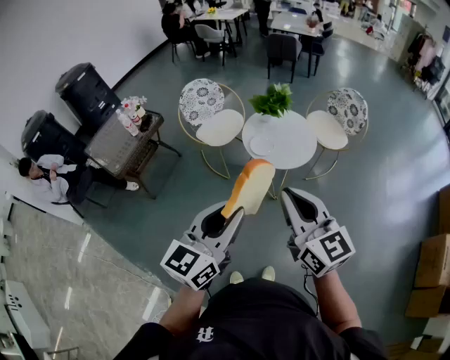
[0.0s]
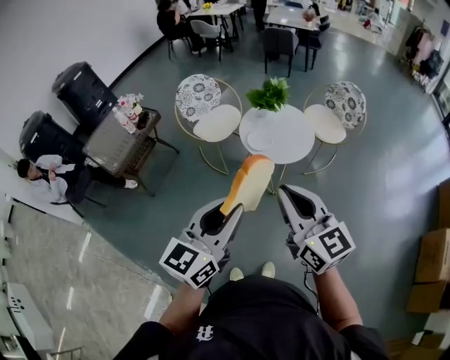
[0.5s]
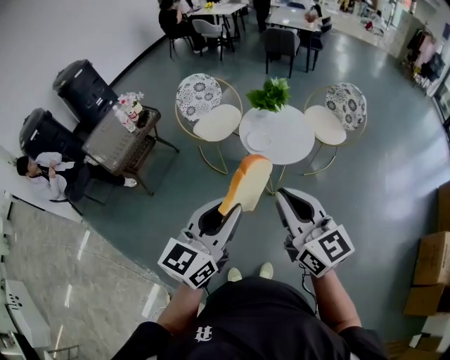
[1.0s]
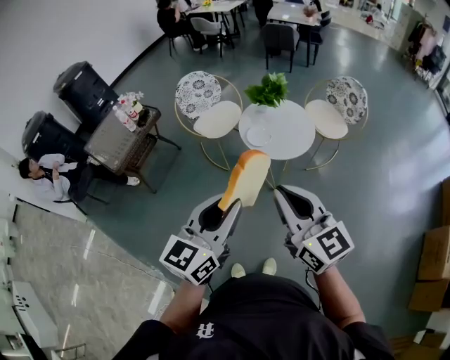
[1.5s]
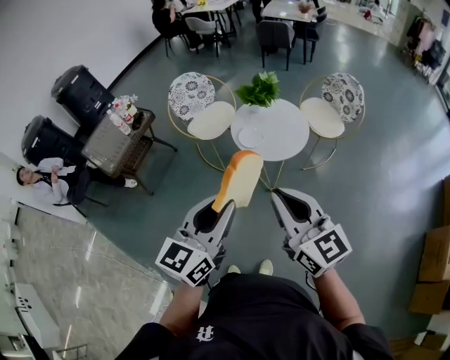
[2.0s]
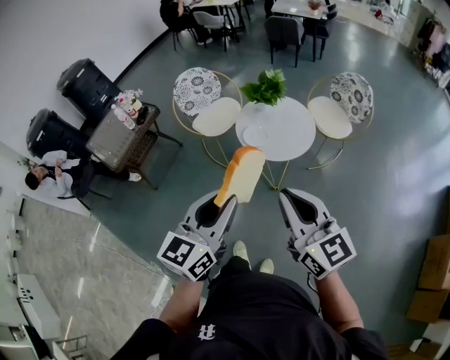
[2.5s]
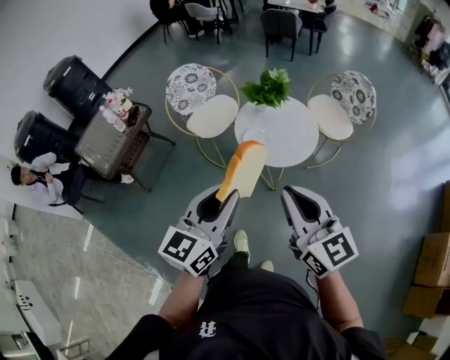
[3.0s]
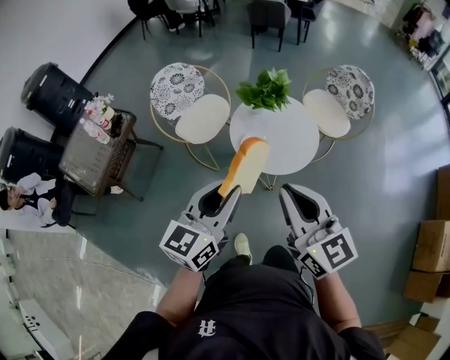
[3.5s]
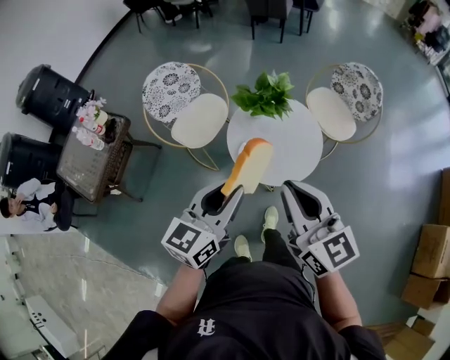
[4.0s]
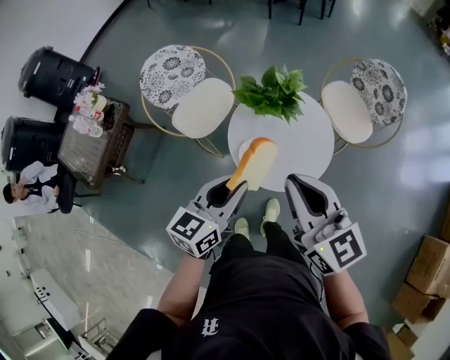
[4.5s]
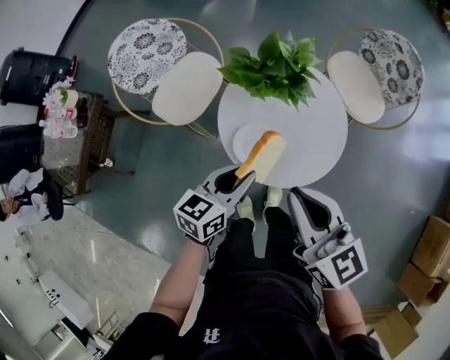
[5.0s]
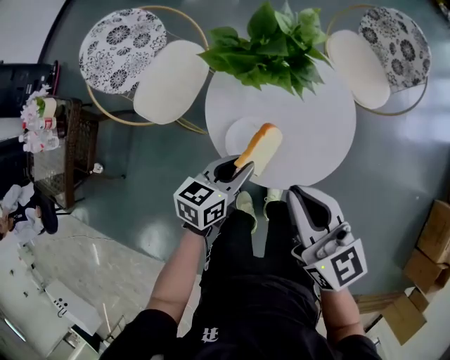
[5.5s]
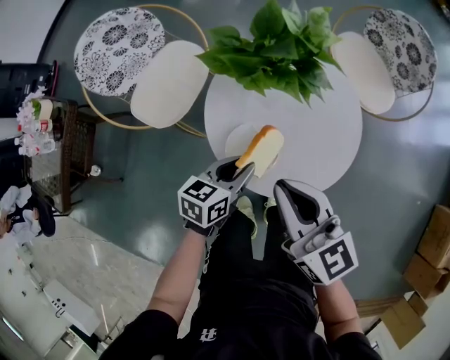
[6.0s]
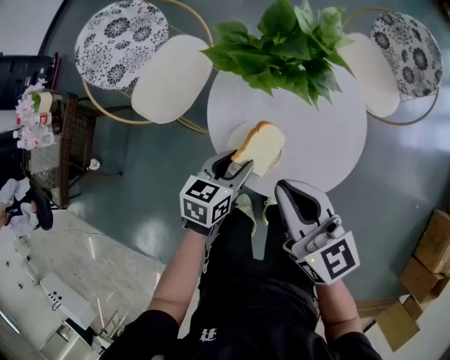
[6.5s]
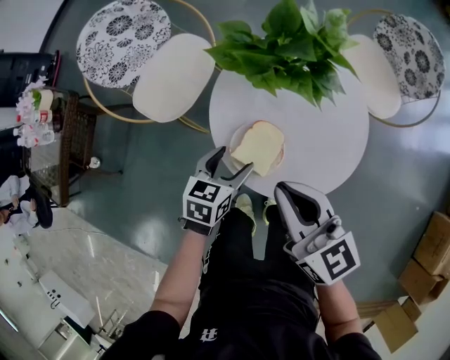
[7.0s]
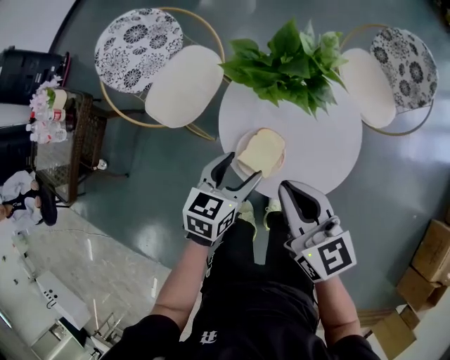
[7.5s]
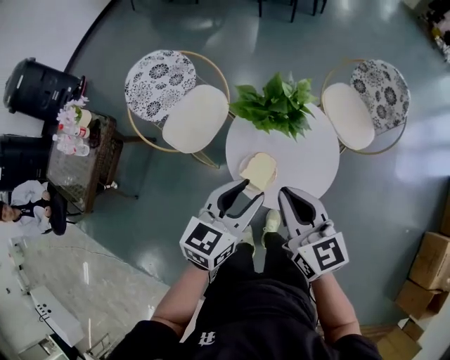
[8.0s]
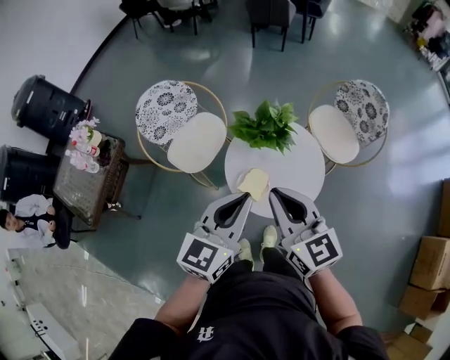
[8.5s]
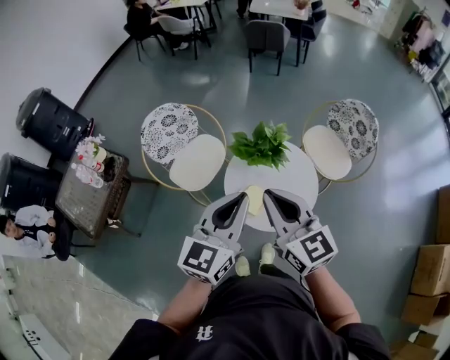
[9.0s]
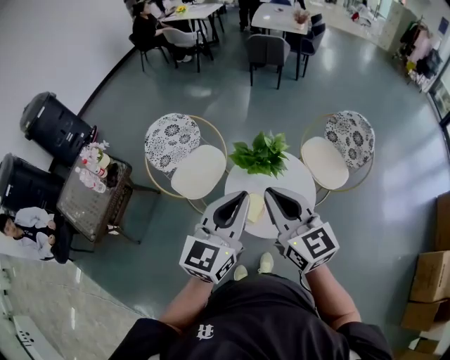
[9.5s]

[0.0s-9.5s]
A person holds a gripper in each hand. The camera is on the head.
0.0s to 2.0s: Both grippers move to the right, roughly 5 cm.
2.0s to 4.0s: Both grippers move forward, approximately 30 cm.
4.0s to 5.5s: Both grippers travel together downward and forward, about 35 cm. The left gripper swivels some 30 degrees.
5.5s to 7.5s: The right gripper changes place by approximately 5 cm. Meanwhile the left gripper reaches some 10 cm downward, then returns, and opens.
7.5s to 9.5s: The grippers both shift upward by about 35 cm. The right gripper turns by about 20 degrees, while the left gripper points its fingers approximately 30 degrees further upward, and closes.

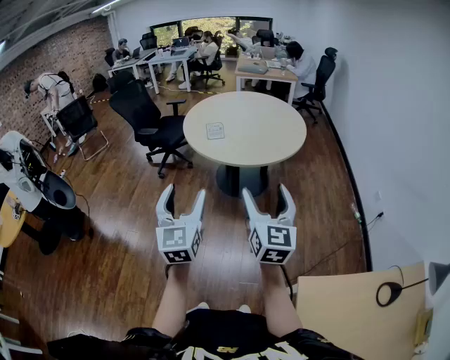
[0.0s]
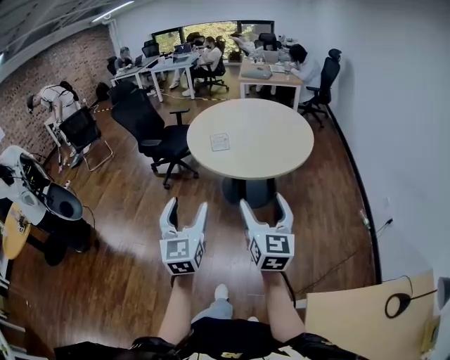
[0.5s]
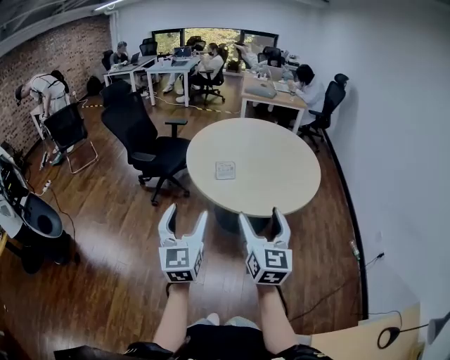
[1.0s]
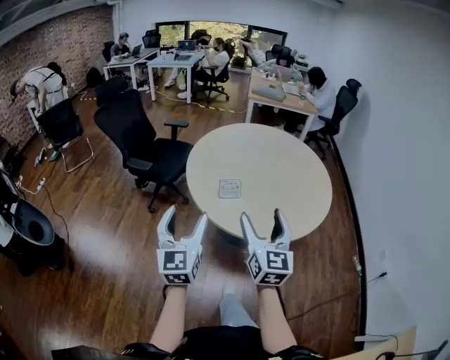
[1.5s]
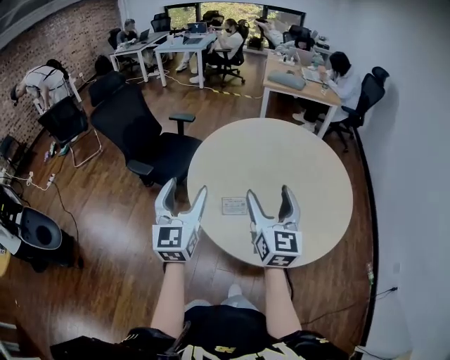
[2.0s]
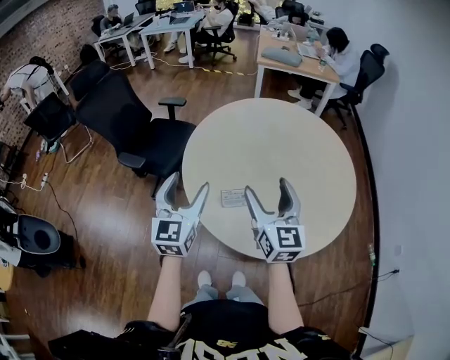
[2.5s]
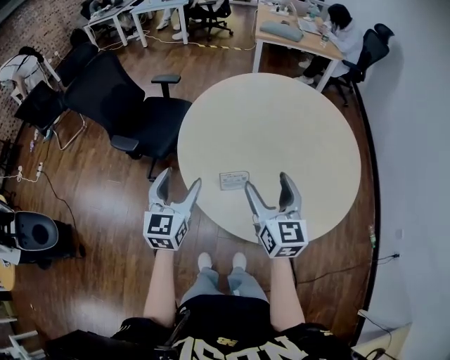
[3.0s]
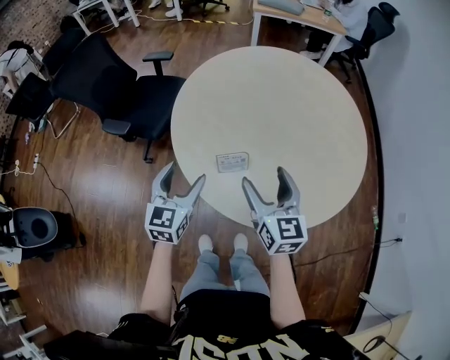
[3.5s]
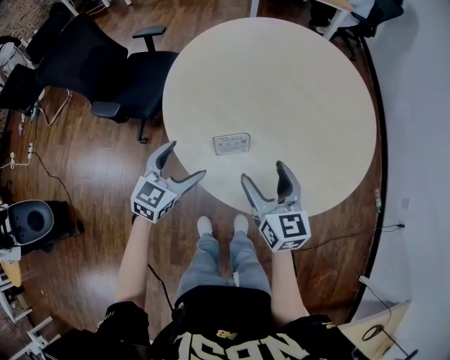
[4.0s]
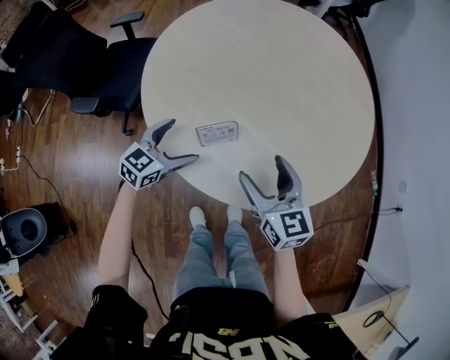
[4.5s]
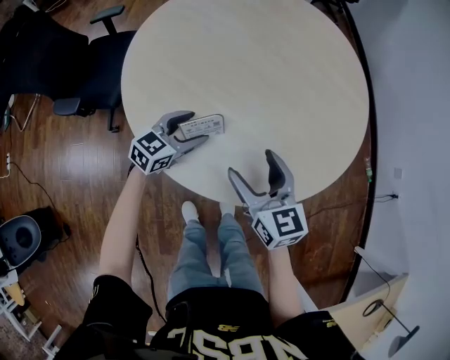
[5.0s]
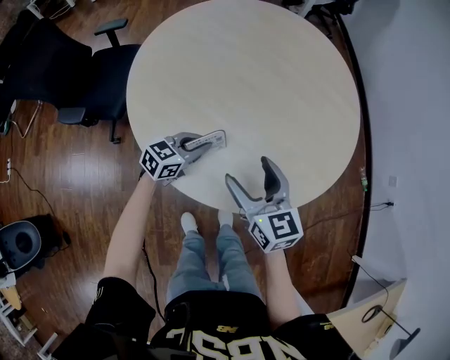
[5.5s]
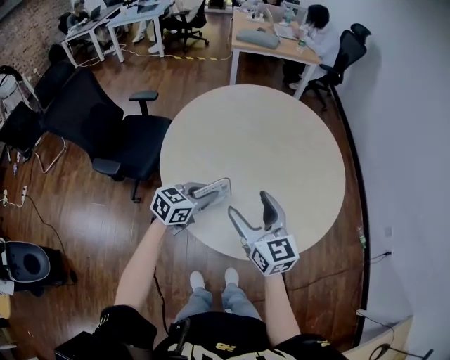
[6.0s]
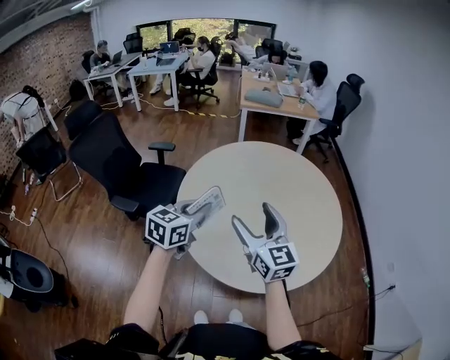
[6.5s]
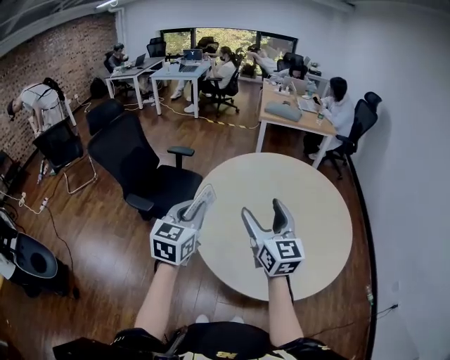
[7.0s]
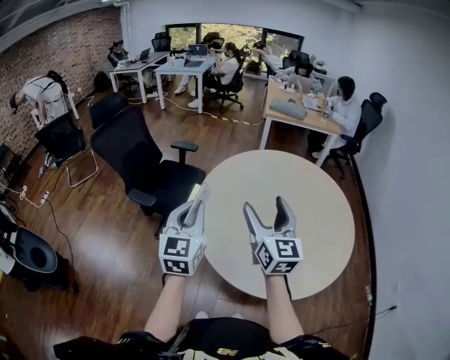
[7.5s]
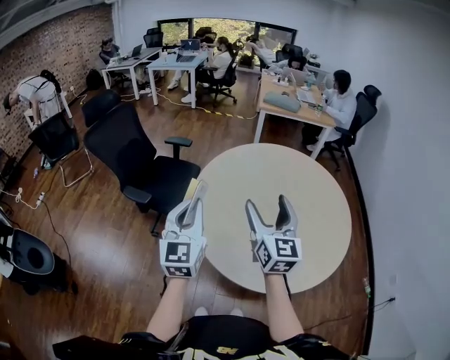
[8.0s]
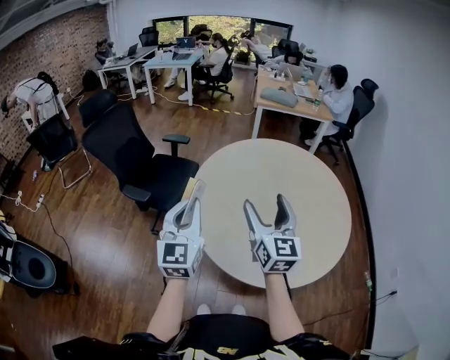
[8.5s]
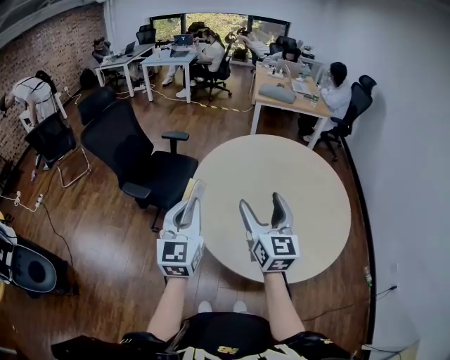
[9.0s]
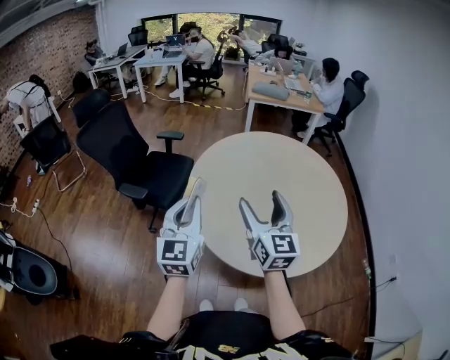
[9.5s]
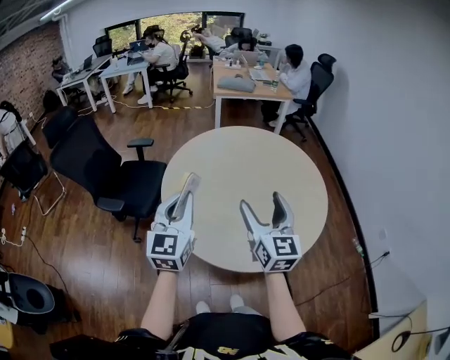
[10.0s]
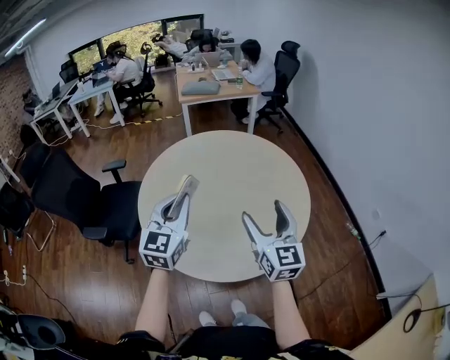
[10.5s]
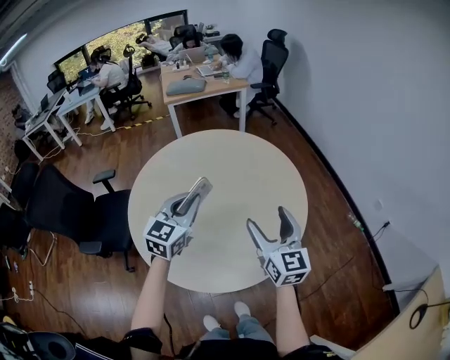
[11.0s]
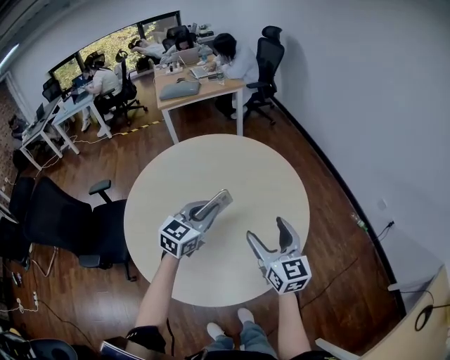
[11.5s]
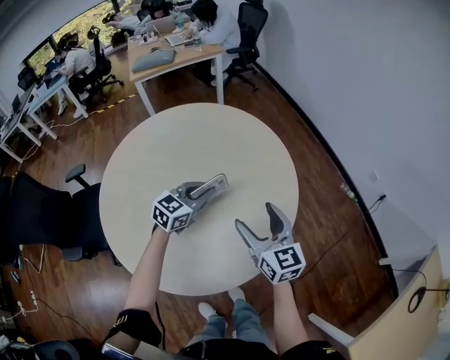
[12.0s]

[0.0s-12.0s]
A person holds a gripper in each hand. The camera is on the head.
0.0s to 2.0s: The pair of grippers is taken forward, roughly 60 cm.
2.0s to 4.0s: The two grippers go about 25 cm downward. The right gripper swivels some 20 degrees. Meanwhile the left gripper changes its angle by approximately 40 degrees.
4.0s to 6.0s: The left gripper goes about 10 cm forward and to the right, goes downward and returns, about 10 cm each way, changes its angle by some 30 degrees, and closes up; the right gripper moves upward, some 10 cm.
6.0s to 8.0s: The right gripper shifts approximately 15 cm upward. Meanwhile the left gripper goes about 25 cm upward, and changes its angle by about 60 degrees.
8.0s to 10.0s: The right gripper goes approximately 10 cm to the right and backward. The left gripper shifts some 5 cm to the right.
10.0s to 12.0s: The left gripper changes place by some 50 cm, and swivels some 60 degrees. Meanwhile the right gripper ends up about 30 cm from where it was.

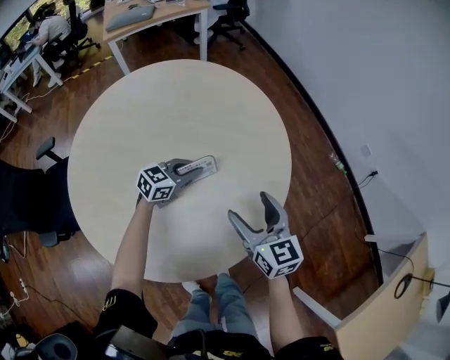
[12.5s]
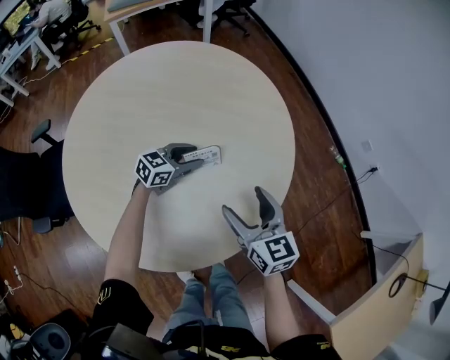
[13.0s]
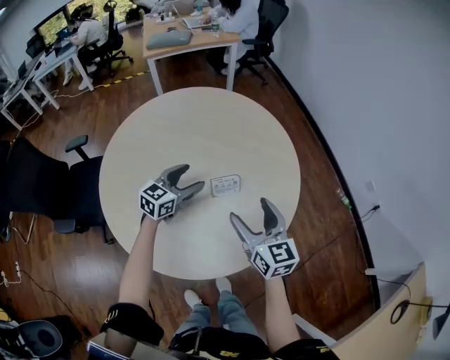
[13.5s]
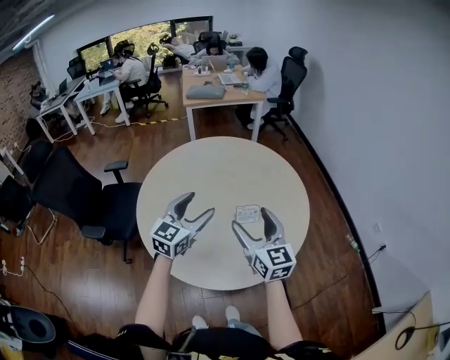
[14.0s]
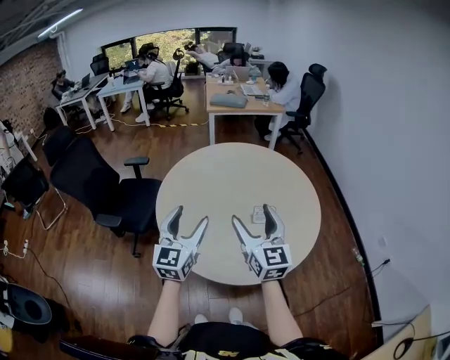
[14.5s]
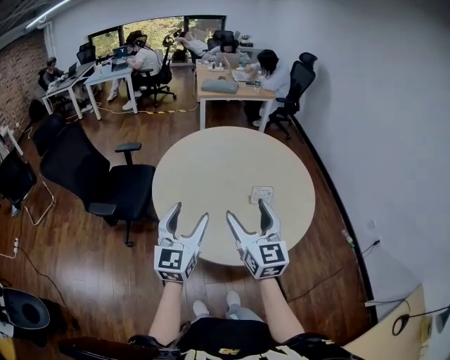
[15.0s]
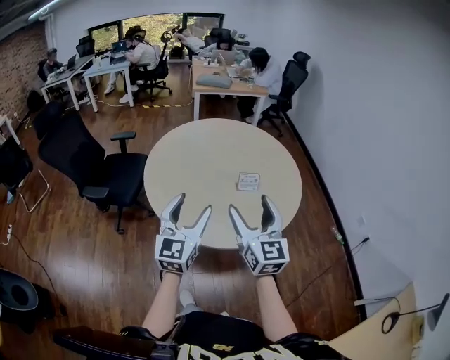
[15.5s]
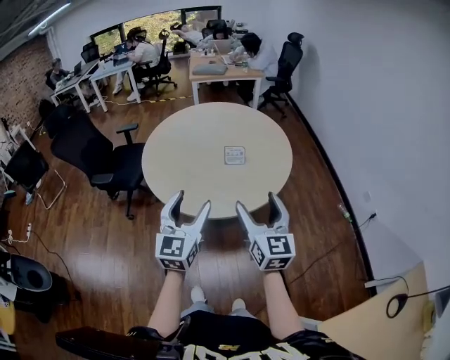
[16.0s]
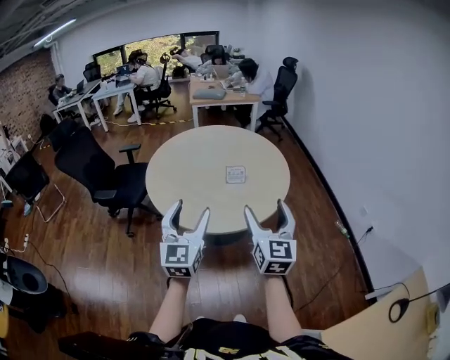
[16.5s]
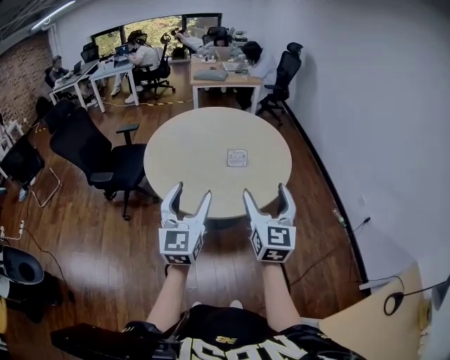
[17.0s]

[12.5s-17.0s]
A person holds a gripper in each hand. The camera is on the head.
12.5s to 14.5s: The right gripper moves upward, about 25 cm, and turns by some 30 degrees; the left gripper shifts by approximately 50 cm, changes its angle by some 70 degrees, and opens its fingers.
14.5s to 17.0s: Both grippers move backward and to the right, roughly 30 cm.

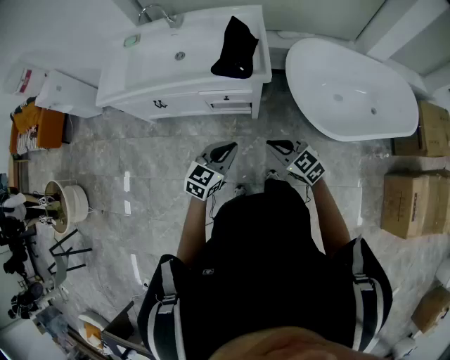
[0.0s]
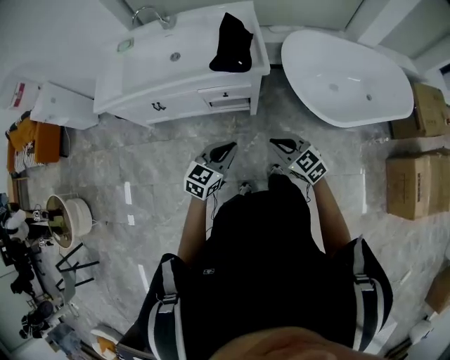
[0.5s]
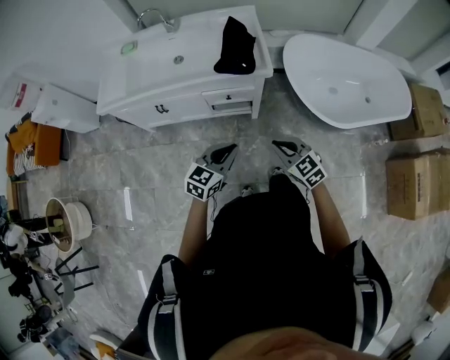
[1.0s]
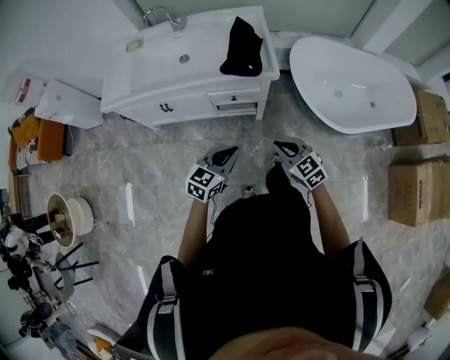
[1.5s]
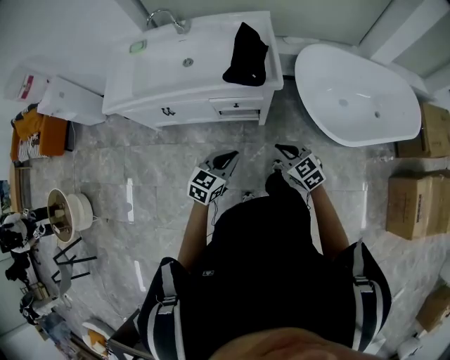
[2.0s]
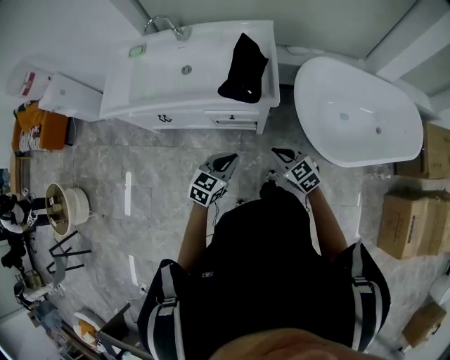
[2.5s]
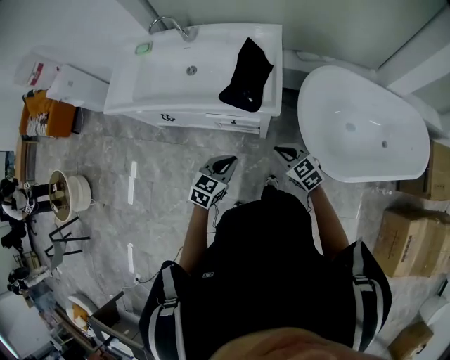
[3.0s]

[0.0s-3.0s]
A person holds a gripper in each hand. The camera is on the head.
0.0s to 1.5s: The left gripper heads to the left, covering roughly 5 cm.
1.5s to 3.0s: Both grippers move forward and to the right, some 15 cm.
